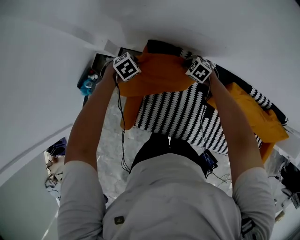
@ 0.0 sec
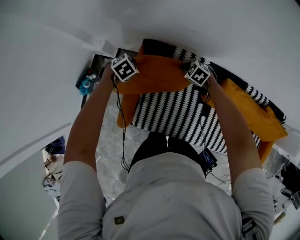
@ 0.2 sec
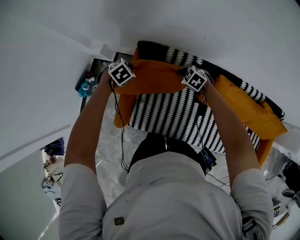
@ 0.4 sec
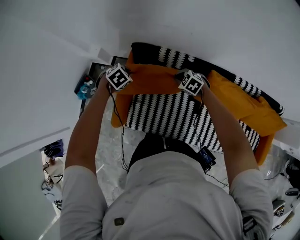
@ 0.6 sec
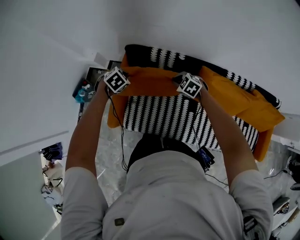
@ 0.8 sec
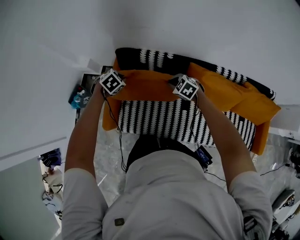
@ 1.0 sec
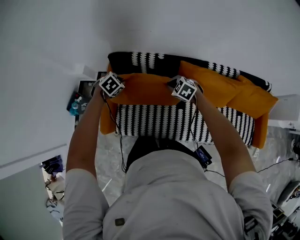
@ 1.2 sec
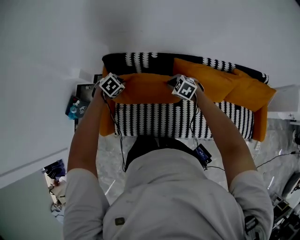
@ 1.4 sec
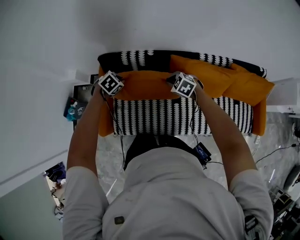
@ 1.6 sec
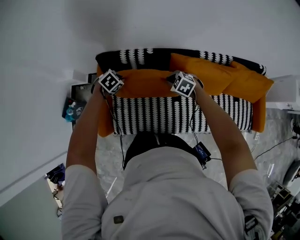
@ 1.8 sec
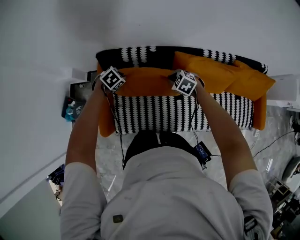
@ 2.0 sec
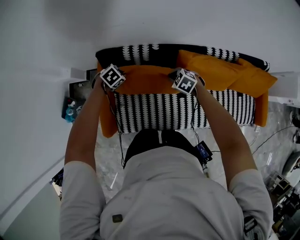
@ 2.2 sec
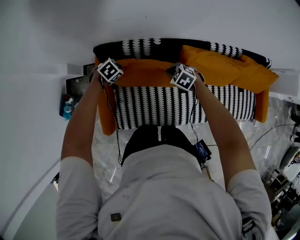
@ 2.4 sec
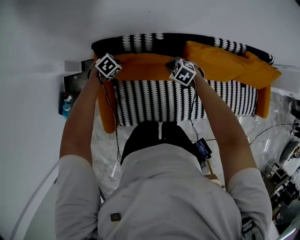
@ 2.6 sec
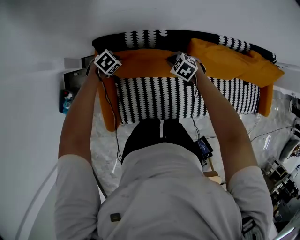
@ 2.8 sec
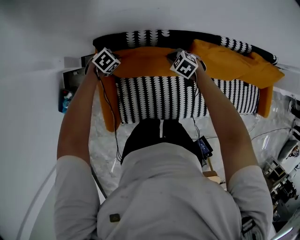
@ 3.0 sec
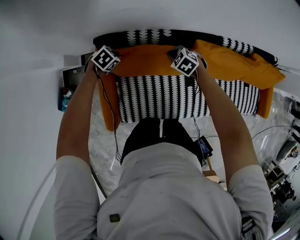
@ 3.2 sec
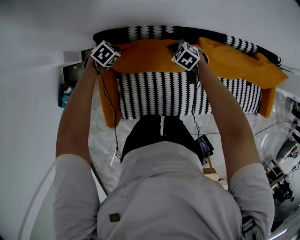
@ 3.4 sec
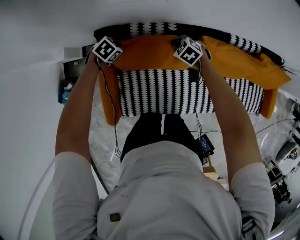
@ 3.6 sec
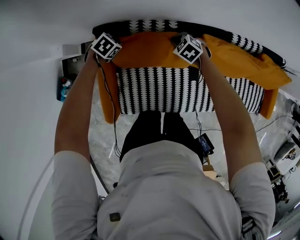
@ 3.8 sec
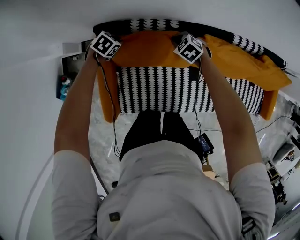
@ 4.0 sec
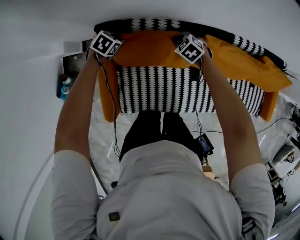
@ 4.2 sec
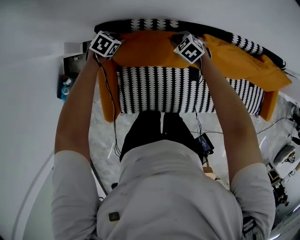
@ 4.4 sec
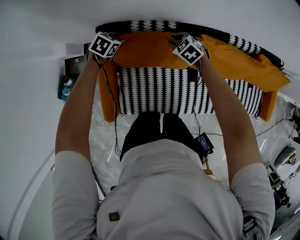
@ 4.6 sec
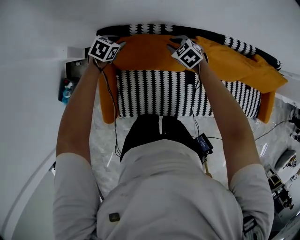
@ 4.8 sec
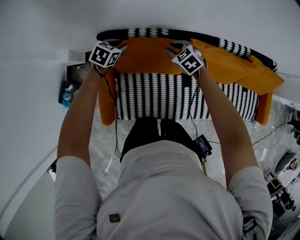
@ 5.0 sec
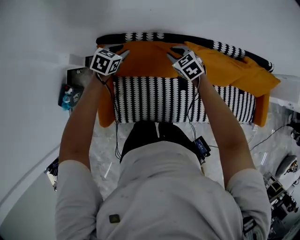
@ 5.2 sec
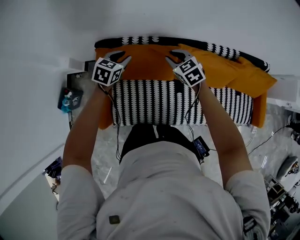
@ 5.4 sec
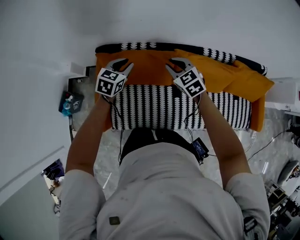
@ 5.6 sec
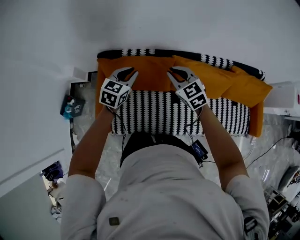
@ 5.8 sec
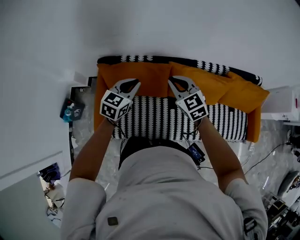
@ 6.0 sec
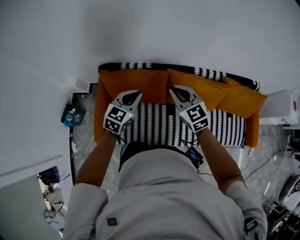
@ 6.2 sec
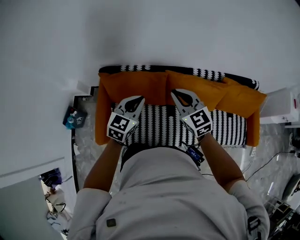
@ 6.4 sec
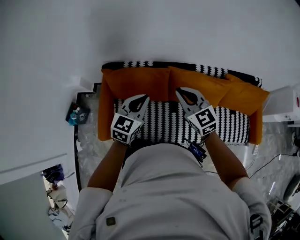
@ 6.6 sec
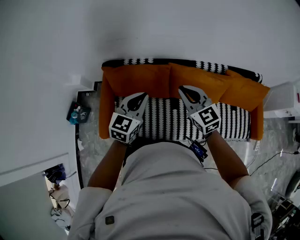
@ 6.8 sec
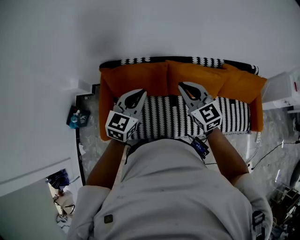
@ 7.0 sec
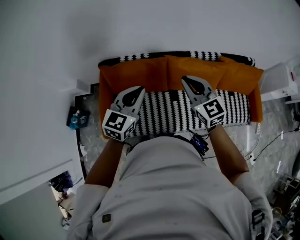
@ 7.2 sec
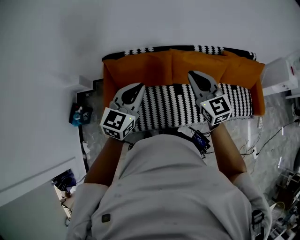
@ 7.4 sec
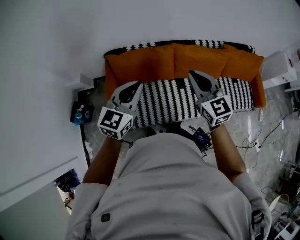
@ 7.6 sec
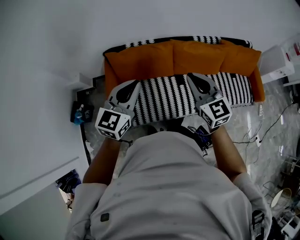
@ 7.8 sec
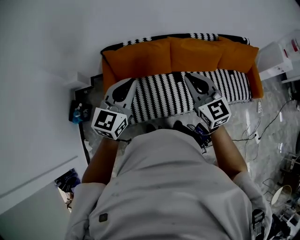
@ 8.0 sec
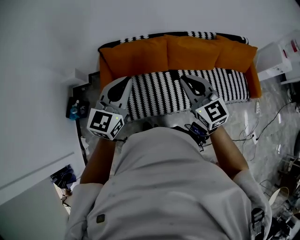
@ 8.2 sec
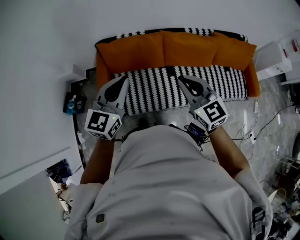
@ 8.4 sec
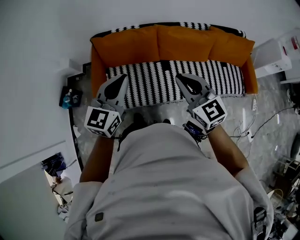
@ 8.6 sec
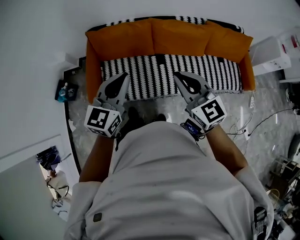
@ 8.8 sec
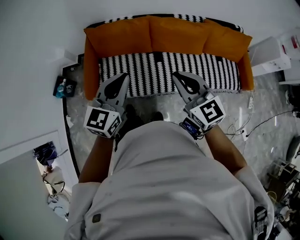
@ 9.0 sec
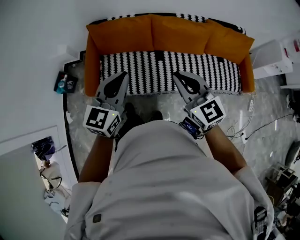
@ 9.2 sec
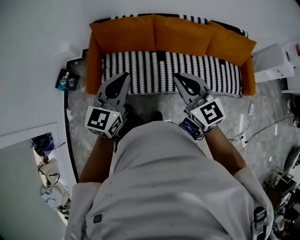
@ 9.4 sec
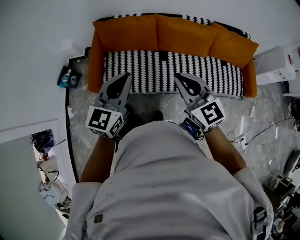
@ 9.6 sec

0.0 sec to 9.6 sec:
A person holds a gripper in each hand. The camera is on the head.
0.0 sec to 1.6 sec: The right gripper changes place by approximately 35 cm. Meanwhile the left gripper shifts by roughly 30 cm.
1.6 sec to 3.2 sec: The right gripper changes place by some 20 cm. The left gripper moves some 20 cm.
3.2 sec to 4.8 sec: The left gripper is displaced upward by roughly 5 cm, rotates some 20 degrees, and opens its fingers.
4.8 sec to 6.4 sec: Both grippers travel together upward, backward and to the right, some 40 cm. The left gripper tips its fingers upward by about 40 degrees, and closes up; the right gripper tilts its fingers roughly 40 degrees upward.
6.4 sec to 8.0 sec: The left gripper moves backward, to the left and upward, some 25 cm. The right gripper travels backward by approximately 20 cm.
8.0 sec to 9.6 sec: Both grippers move backward and to the right, approximately 25 cm.

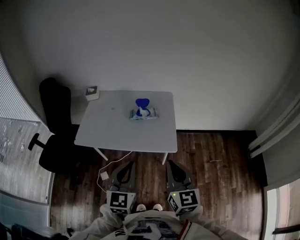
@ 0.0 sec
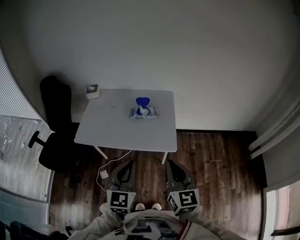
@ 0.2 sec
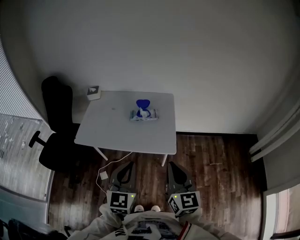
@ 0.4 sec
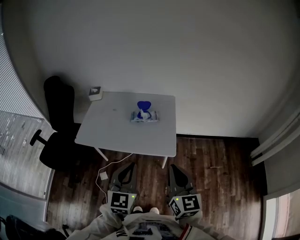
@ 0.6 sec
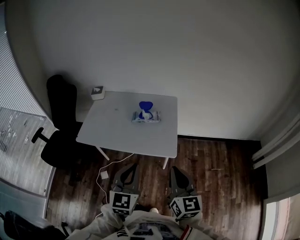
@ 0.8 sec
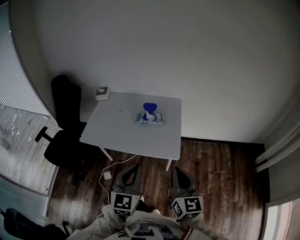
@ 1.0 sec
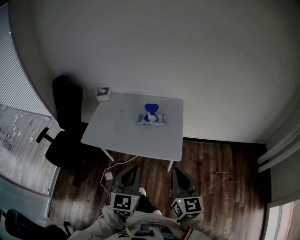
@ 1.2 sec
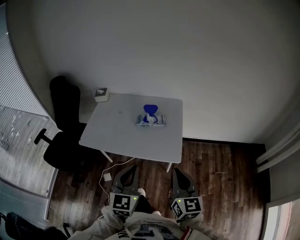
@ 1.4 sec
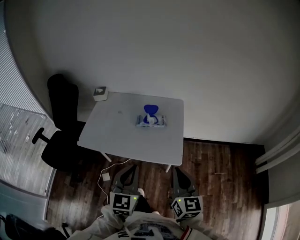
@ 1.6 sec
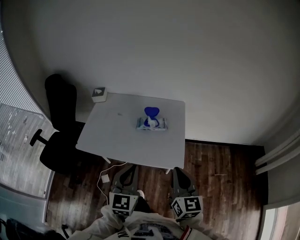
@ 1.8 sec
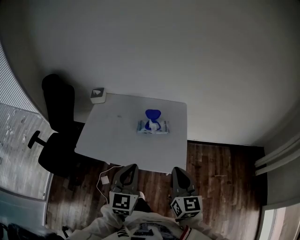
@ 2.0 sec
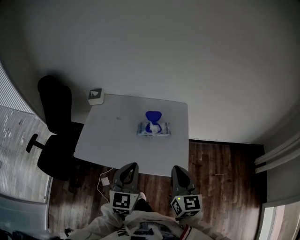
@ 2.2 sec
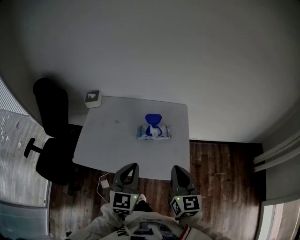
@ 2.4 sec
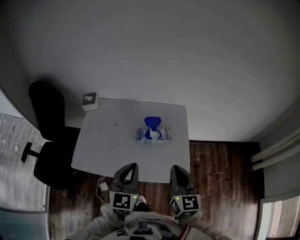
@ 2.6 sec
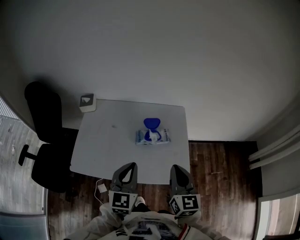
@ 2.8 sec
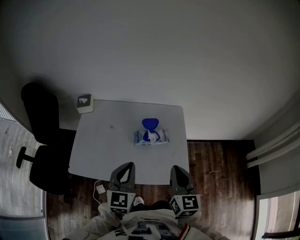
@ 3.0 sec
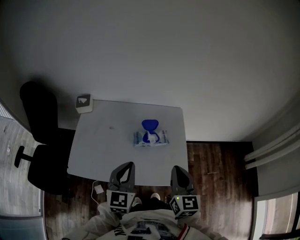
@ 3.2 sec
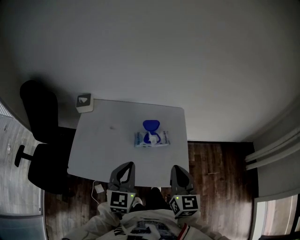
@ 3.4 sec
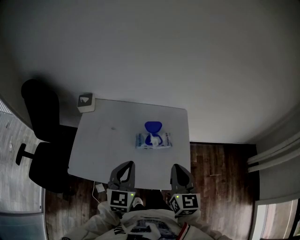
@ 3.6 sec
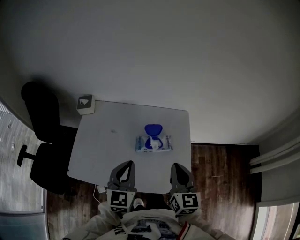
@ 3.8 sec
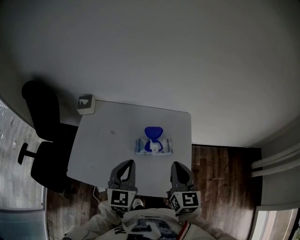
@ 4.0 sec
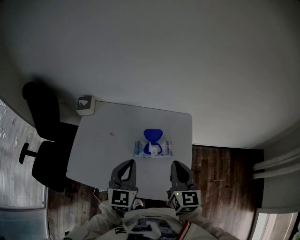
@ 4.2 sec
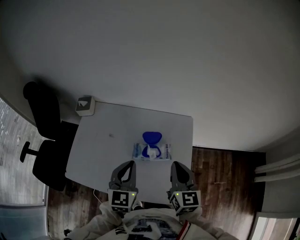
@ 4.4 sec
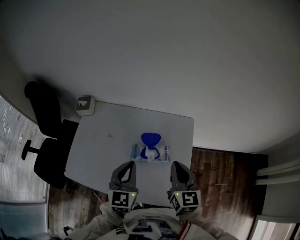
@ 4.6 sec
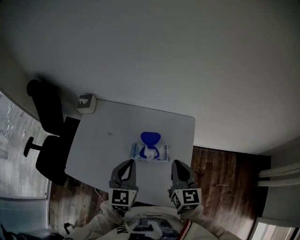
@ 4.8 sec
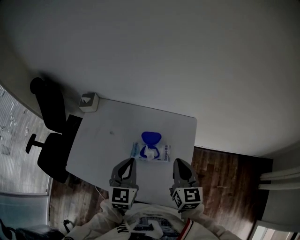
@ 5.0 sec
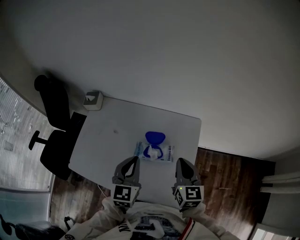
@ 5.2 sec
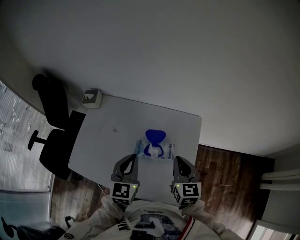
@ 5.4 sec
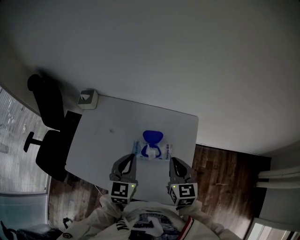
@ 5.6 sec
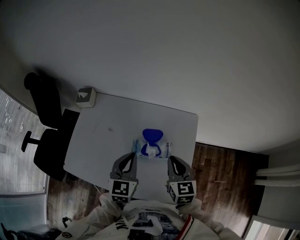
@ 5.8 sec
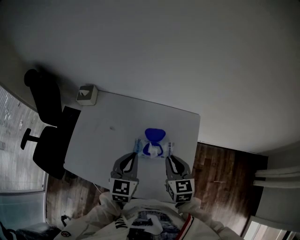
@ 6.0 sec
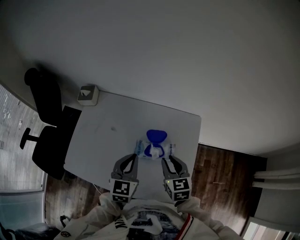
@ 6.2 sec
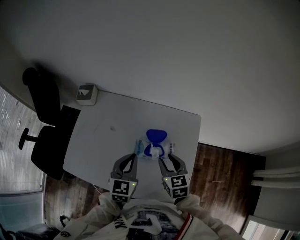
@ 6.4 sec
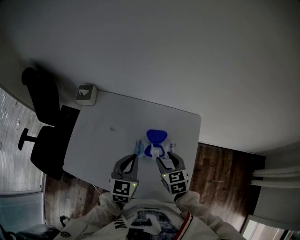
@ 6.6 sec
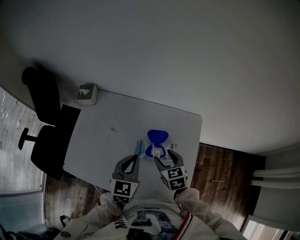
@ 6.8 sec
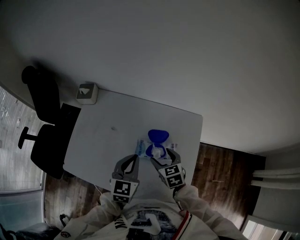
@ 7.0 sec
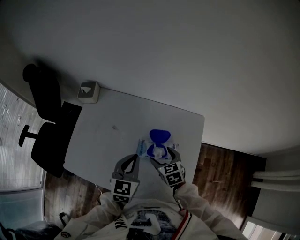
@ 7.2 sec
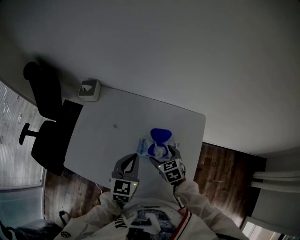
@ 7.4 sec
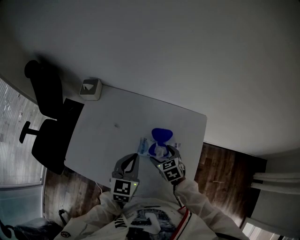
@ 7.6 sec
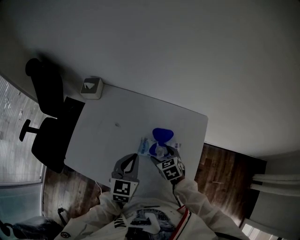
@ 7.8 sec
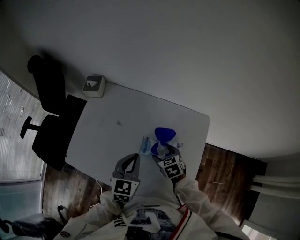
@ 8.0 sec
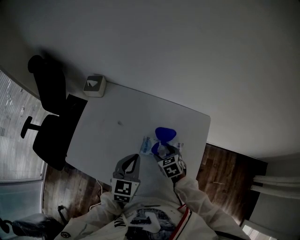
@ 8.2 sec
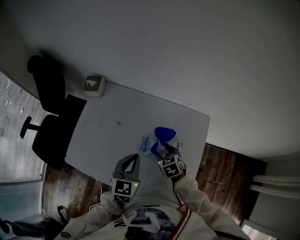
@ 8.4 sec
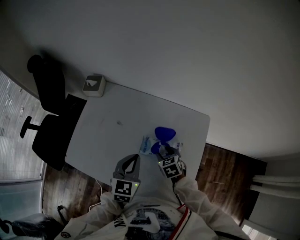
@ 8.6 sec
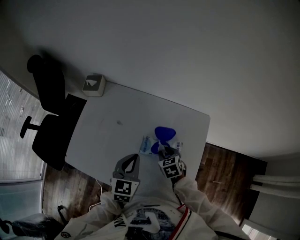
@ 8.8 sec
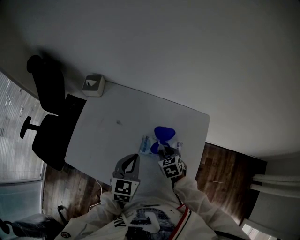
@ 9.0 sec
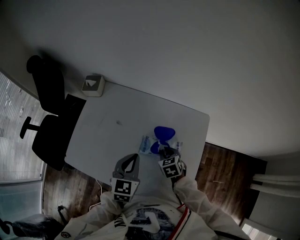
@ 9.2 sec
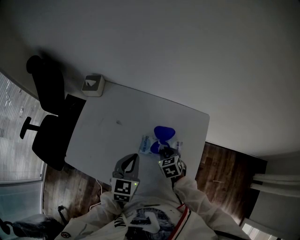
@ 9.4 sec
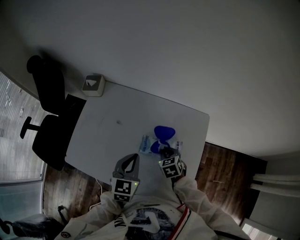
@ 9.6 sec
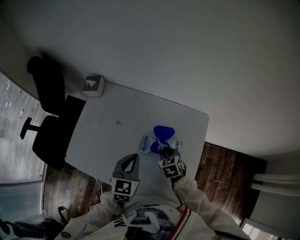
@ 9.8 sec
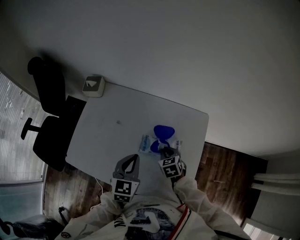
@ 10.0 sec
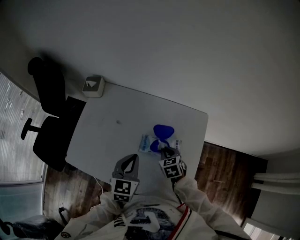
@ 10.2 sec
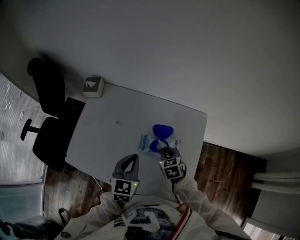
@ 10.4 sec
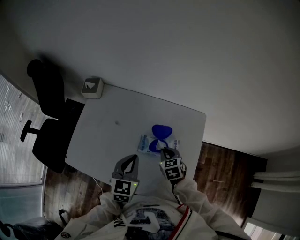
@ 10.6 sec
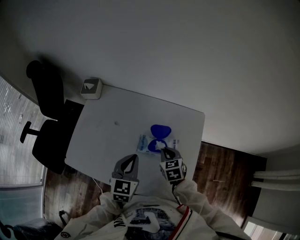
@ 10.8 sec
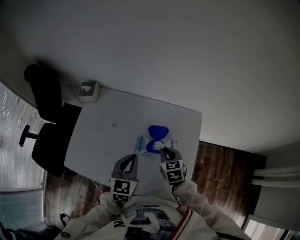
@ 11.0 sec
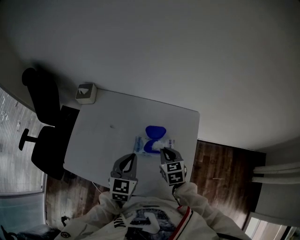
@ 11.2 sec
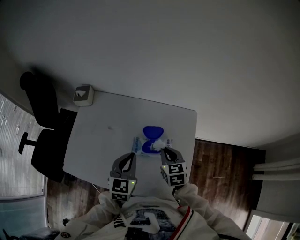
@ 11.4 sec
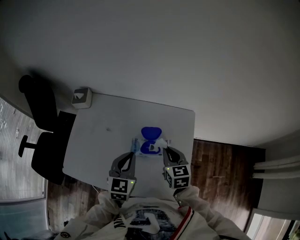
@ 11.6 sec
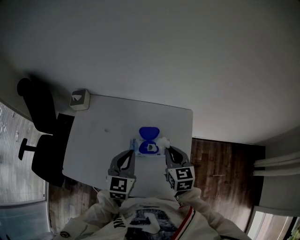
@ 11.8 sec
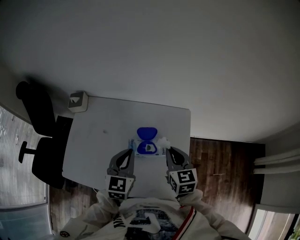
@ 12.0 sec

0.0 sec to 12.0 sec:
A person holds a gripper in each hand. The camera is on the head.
0.0 sec to 1.6 sec: The grippers both shift forward by about 5 cm.
1.6 sec to 3.0 sec: Both grippers travel together forward and to the left, approximately 20 cm.
3.0 sec to 4.4 sec: Both grippers move forward, approximately 15 cm.
4.4 sec to 6.0 sec: The right gripper moves downward, some 10 cm. The left gripper is displaced downward by approximately 5 cm.
6.0 sec to 7.6 sec: The right gripper moves downward and to the left, roughly 15 cm, rotates about 30 degrees, and opens up.
7.6 sec to 9.0 sec: The right gripper closes.
9.0 sec to 10.4 sec: There are only small adjustments of the grippers.
10.4 sec to 12.0 sec: The left gripper moves upward, roughly 5 cm. Meanwhile the right gripper travels upward and to the right by some 20 cm, and swivels approximately 30 degrees.

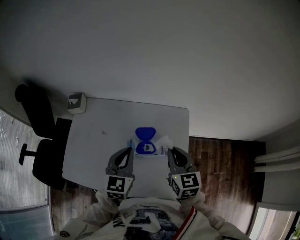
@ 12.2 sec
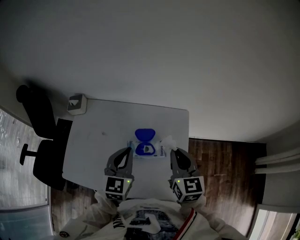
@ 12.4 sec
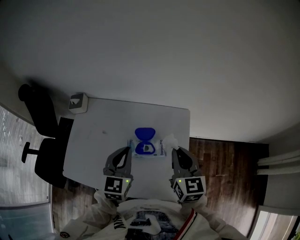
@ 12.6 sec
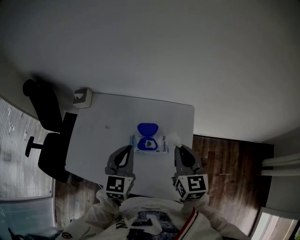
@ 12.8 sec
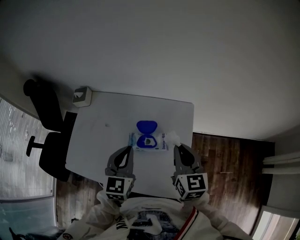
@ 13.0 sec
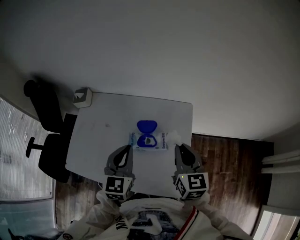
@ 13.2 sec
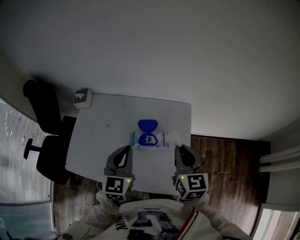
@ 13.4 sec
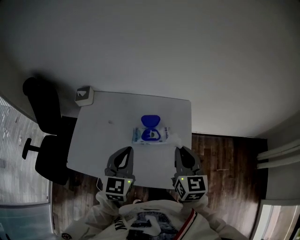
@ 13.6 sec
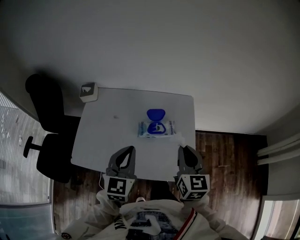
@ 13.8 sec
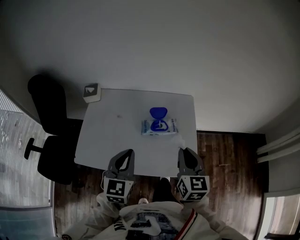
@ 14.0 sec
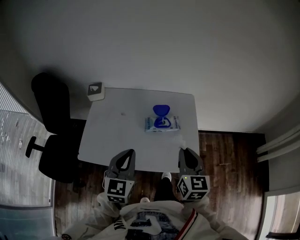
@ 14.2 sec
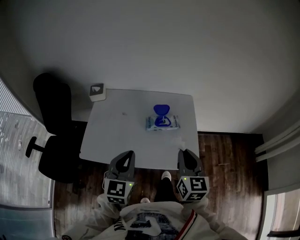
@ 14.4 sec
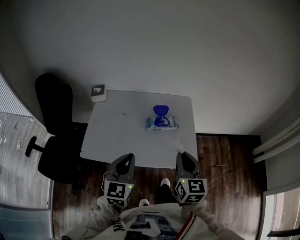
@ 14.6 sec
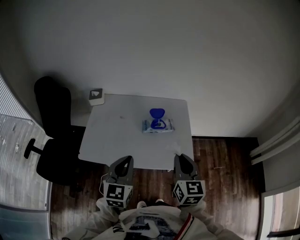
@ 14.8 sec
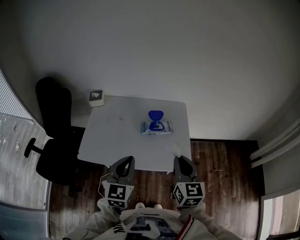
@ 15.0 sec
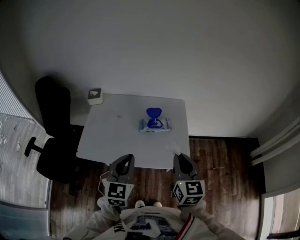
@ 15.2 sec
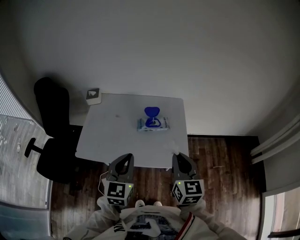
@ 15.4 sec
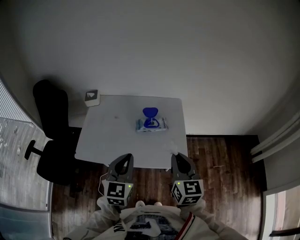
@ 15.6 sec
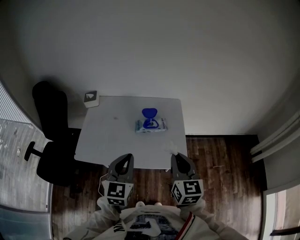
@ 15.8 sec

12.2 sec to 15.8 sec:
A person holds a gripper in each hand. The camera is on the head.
12.2 sec to 14.0 sec: The left gripper goes about 20 cm backward and to the left. The right gripper travels backward by roughly 15 cm.
14.0 sec to 15.8 sec: The grippers both shift backward by roughly 10 cm.
